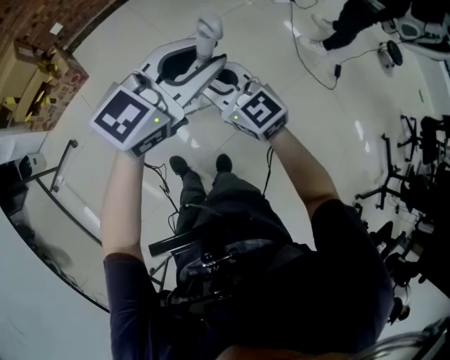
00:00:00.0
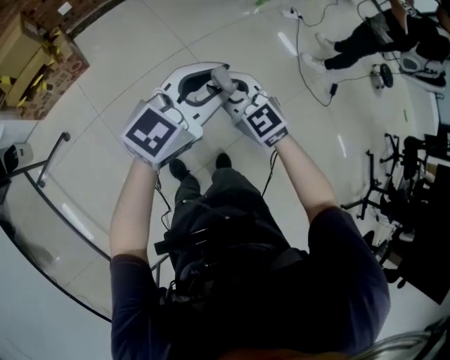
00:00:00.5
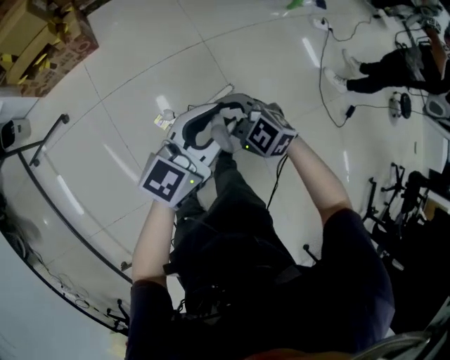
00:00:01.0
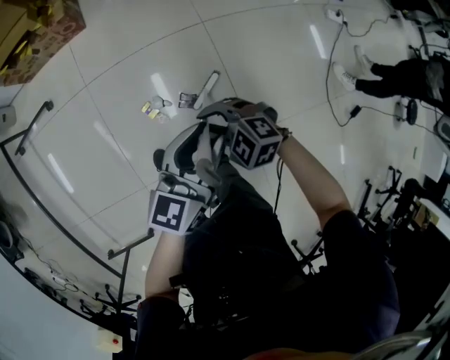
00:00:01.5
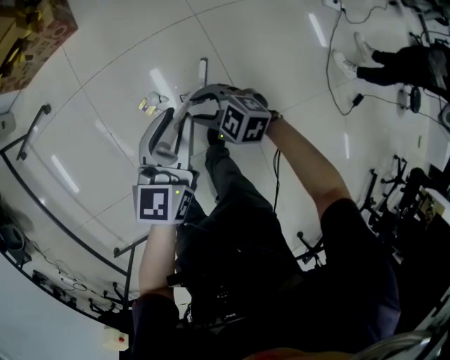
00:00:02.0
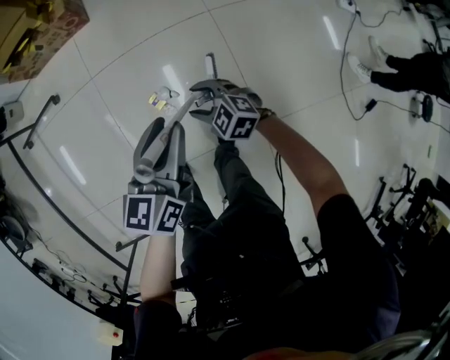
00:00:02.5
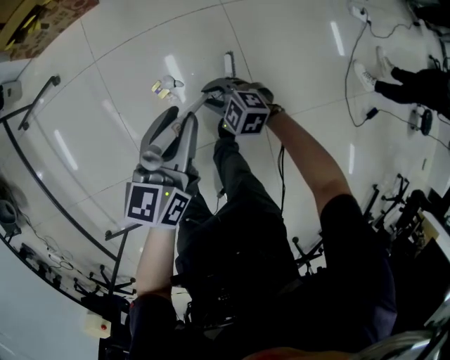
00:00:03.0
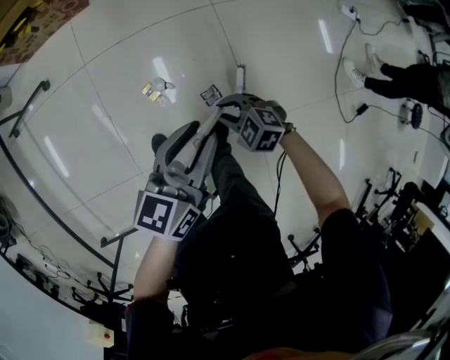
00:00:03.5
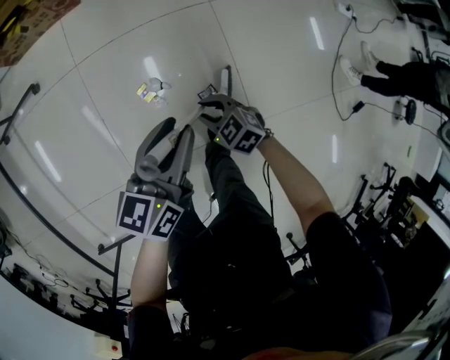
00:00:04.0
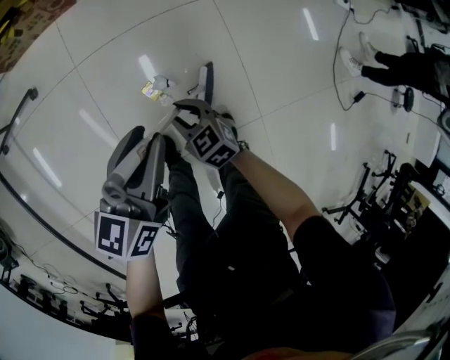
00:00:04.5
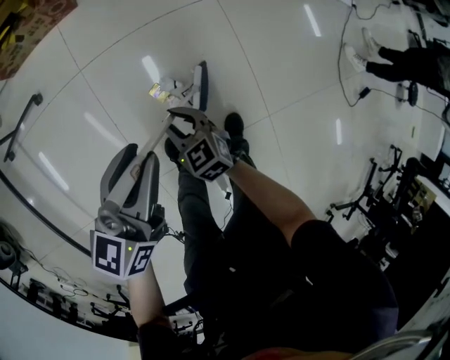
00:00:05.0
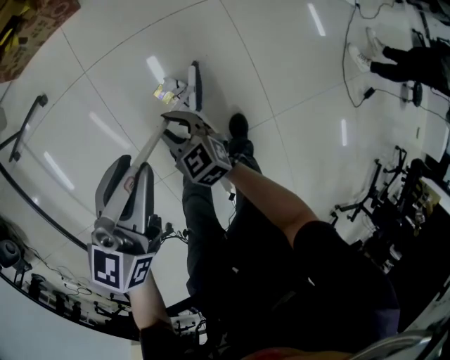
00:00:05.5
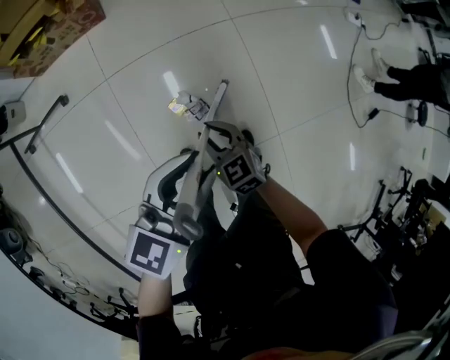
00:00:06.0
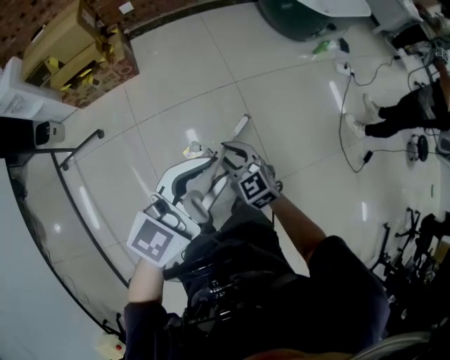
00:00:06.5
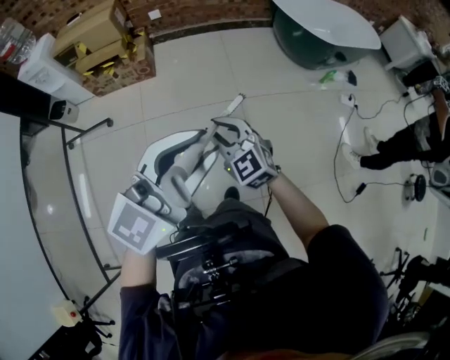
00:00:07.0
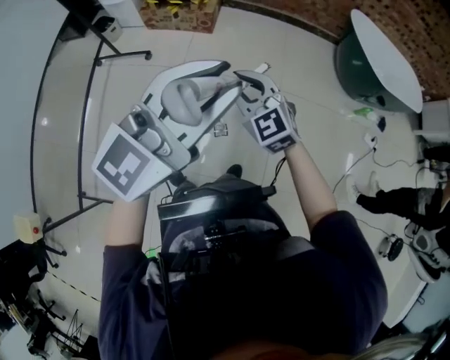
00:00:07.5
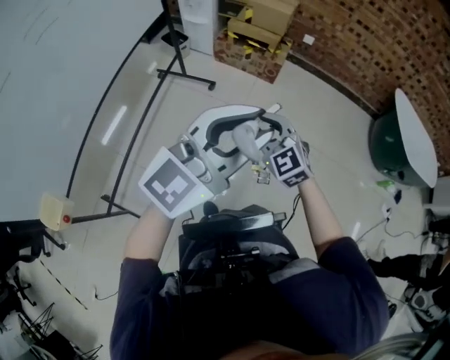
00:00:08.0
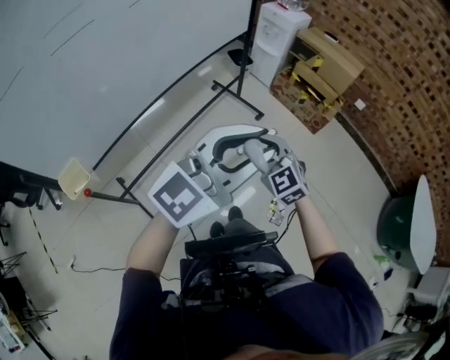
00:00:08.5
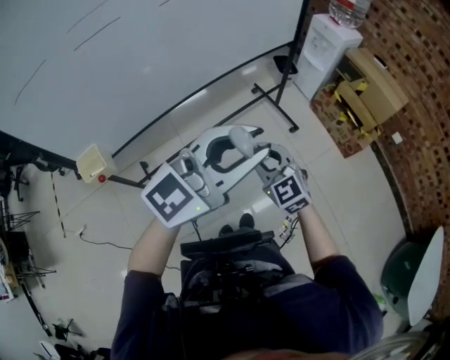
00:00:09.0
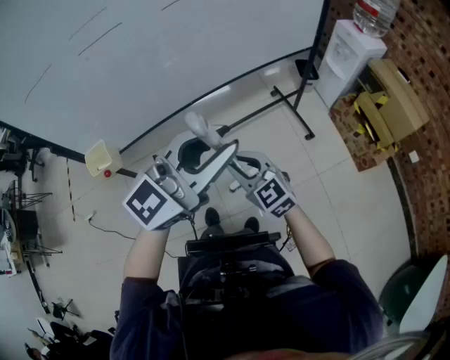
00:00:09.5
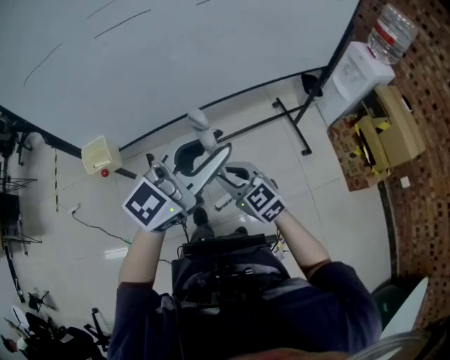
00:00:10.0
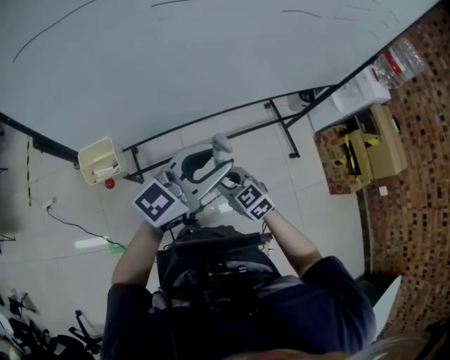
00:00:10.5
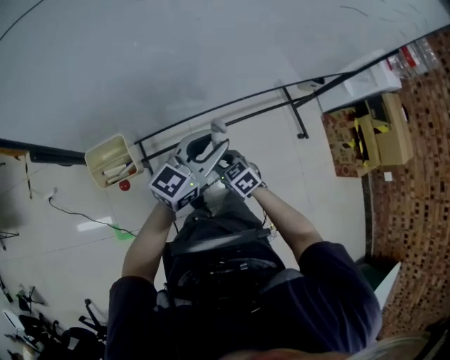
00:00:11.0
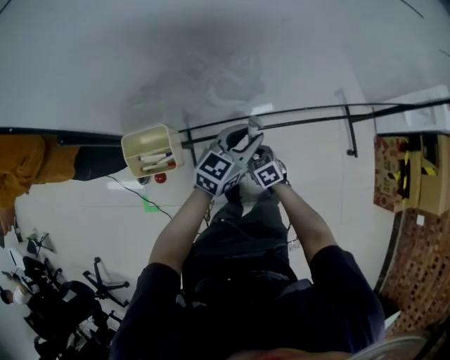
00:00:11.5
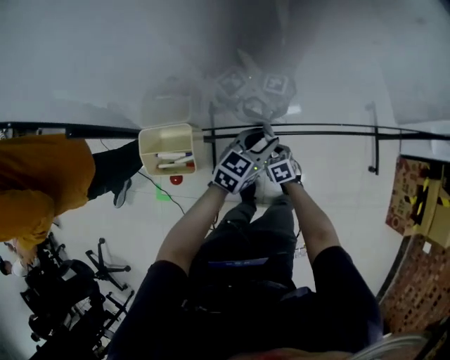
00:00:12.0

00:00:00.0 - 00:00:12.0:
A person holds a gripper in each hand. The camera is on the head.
00:00:00.0 - 00:00:02.0: Both grippers move downward, approximately 30 cm. The left gripper swivels roughly 60 degrees, while the right gripper tips its fingers downward by some 30 degrees, and opens up.
00:00:02.0 - 00:00:04.0: The right gripper shifts some 10 cm downward. The left gripper is displaced to the left and downward by roughly 10 cm.
00:00:04.0 - 00:00:06.0: The left gripper travels upward and to the left by approximately 10 cm, and turns by some 30 degrees. The right gripper moves to the left and upward, roughly 15 cm, and changes its angle by some 30 degrees.
00:00:06.0 - 00:00:08.0: The grippers both shift upward by approximately 40 cm. The right gripper rotates around the line of its fingers by approximately 50 degrees, counterclockwise from behind; the left gripper rotates about 50 degrees.
00:00:08.0 - 00:00:10.0: The left gripper changes place by some 35 cm, and changes its angle by roughly 50 degrees. Meanwhile the right gripper changes place by approximately 35 cm, and changes its angle by about 60 degrees.
00:00:10.0 - 00:00:12.0: The grippers both shift downward, to the left and forward by approximately 50 cm. The left gripper tips its fingers downward by some 30 degrees. The right gripper tips its fingers downward by about 40 degrees.

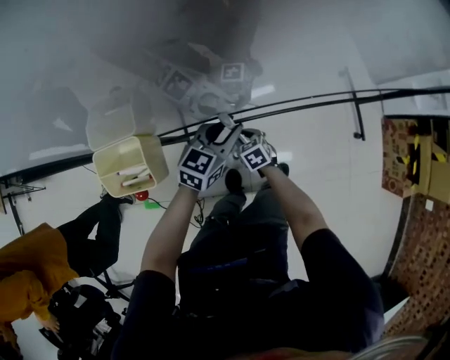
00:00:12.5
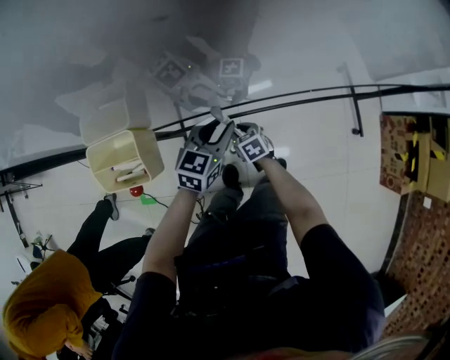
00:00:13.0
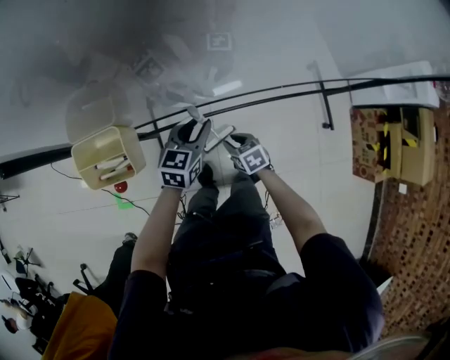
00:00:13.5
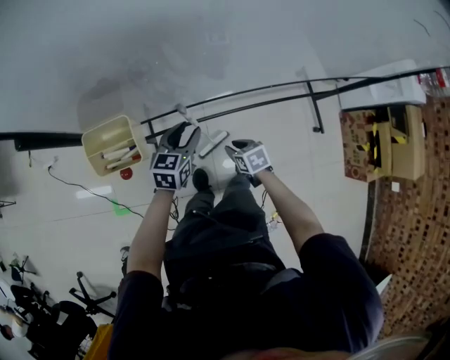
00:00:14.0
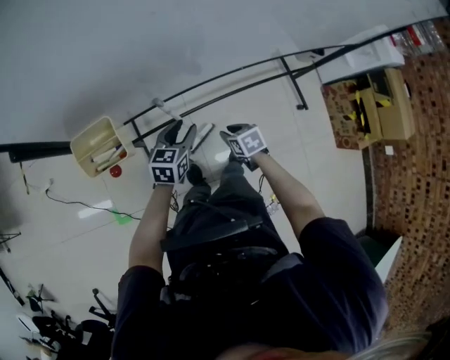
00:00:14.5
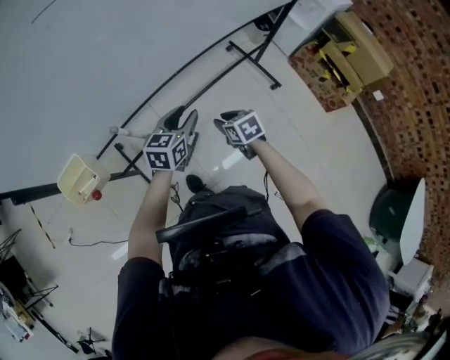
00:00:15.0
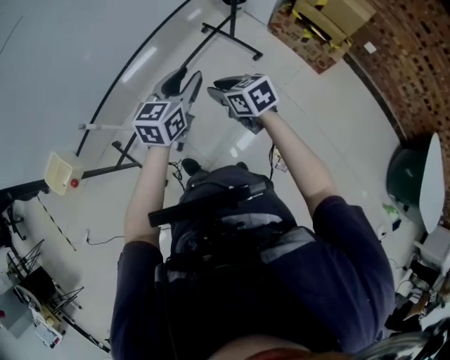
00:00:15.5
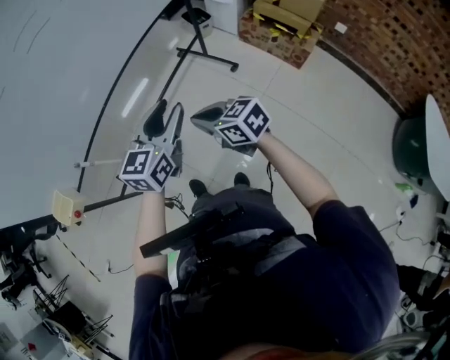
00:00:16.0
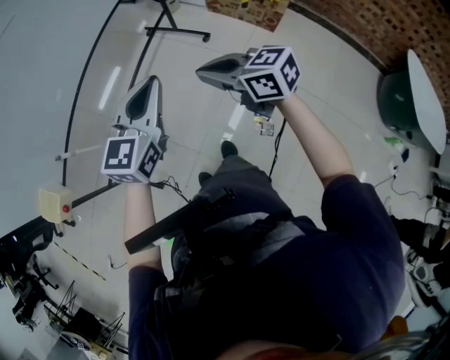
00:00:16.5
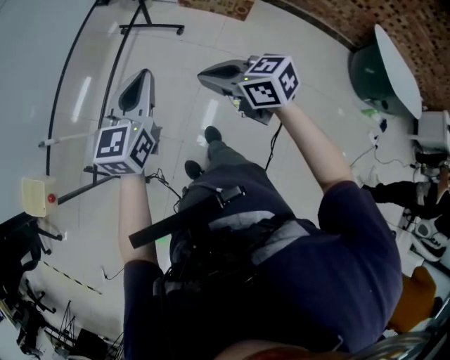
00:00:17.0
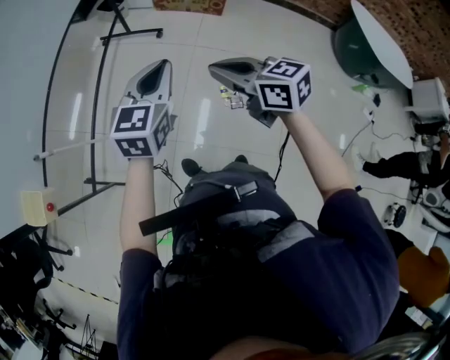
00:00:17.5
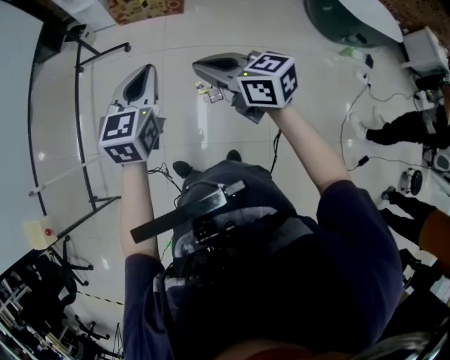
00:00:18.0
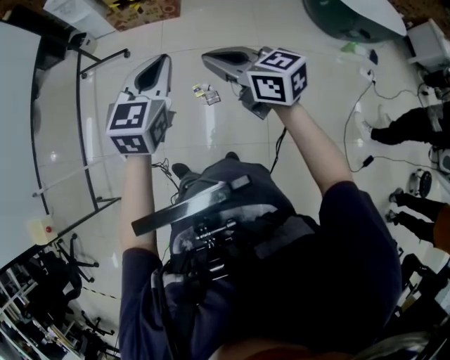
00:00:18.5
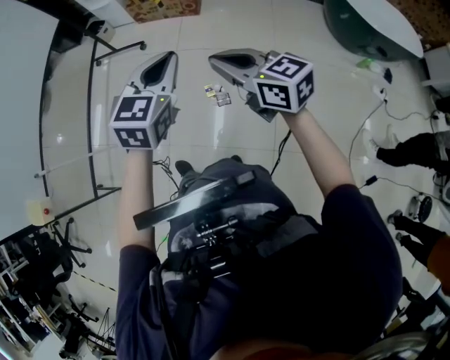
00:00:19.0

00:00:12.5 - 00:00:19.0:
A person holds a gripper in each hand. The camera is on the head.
00:00:12.5 - 00:00:14.5: The left gripper shifts by about 5 cm. The right gripper moves upward, to the right and backward, about 15 cm.
00:00:14.5 - 00:00:17.0: The left gripper changes place by approximately 50 cm, rotates about 50 degrees, and closes up. Meanwhile the right gripper changes place by approximately 50 cm, angles its fingers upward, by roughly 30 degrees, and closes up.
00:00:17.0 - 00:00:19.0: The left gripper changes place by approximately 40 cm, and changes its angle by some 30 degrees. Meanwhile the right gripper shifts by roughly 40 cm, and swivels roughly 30 degrees.

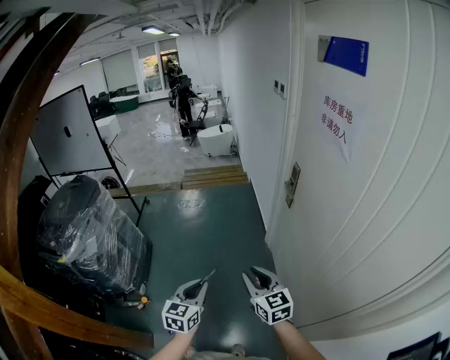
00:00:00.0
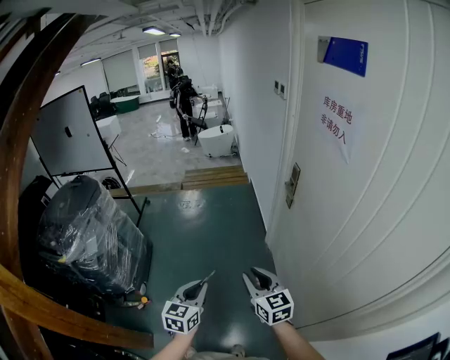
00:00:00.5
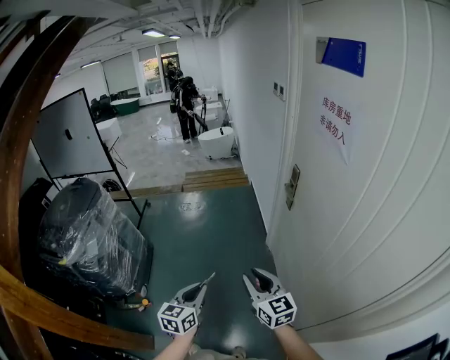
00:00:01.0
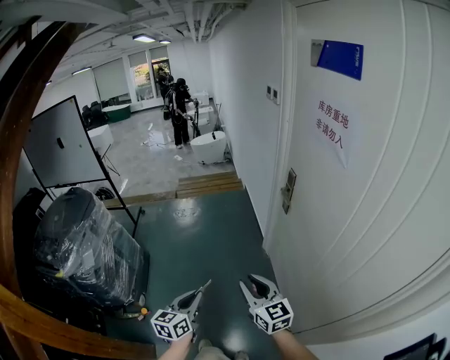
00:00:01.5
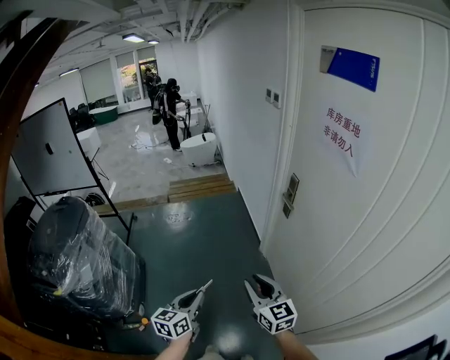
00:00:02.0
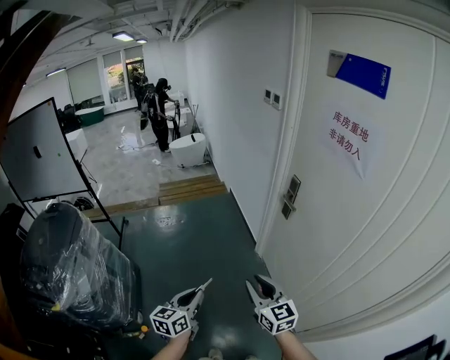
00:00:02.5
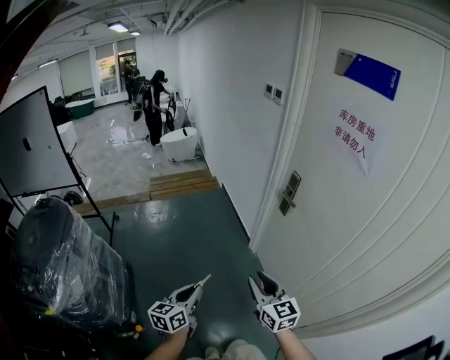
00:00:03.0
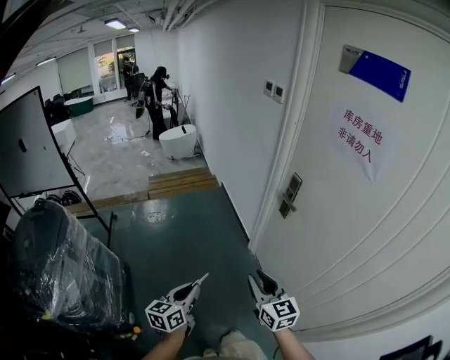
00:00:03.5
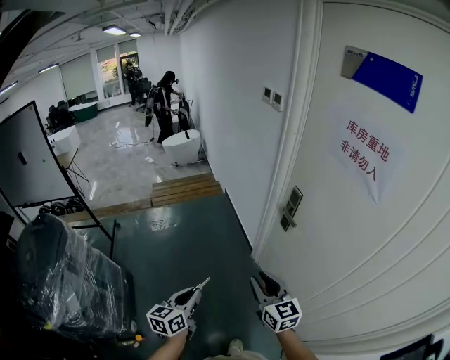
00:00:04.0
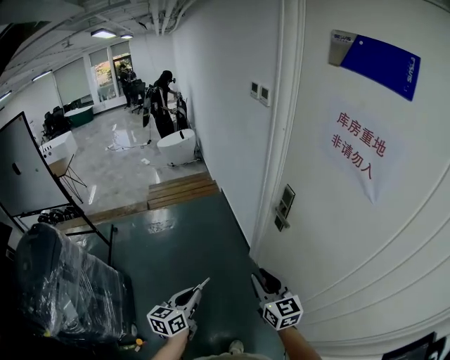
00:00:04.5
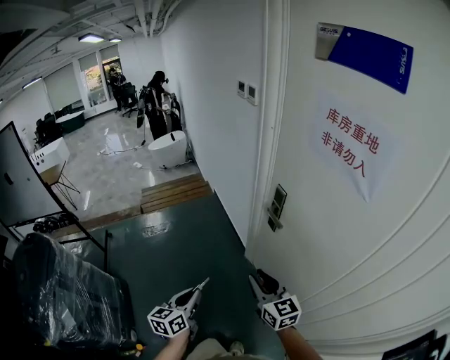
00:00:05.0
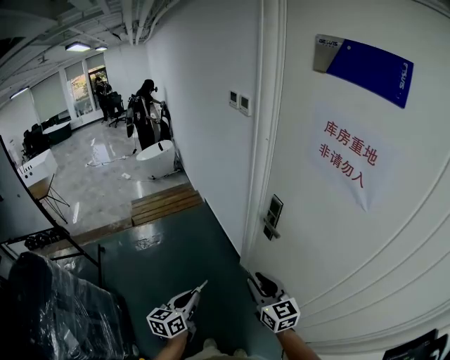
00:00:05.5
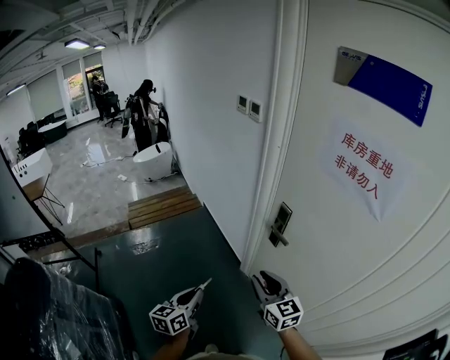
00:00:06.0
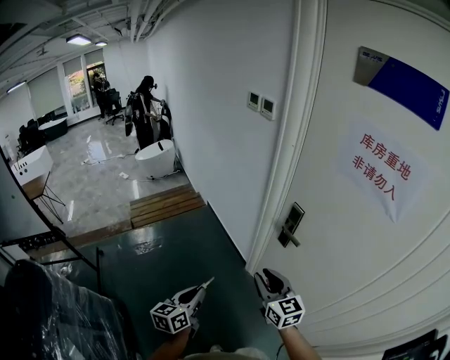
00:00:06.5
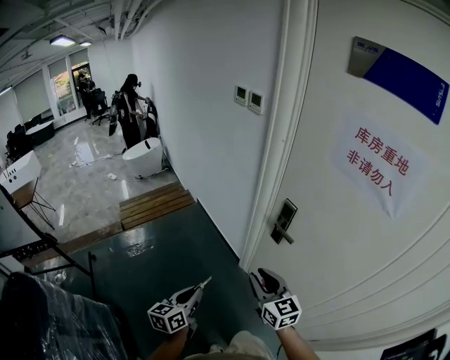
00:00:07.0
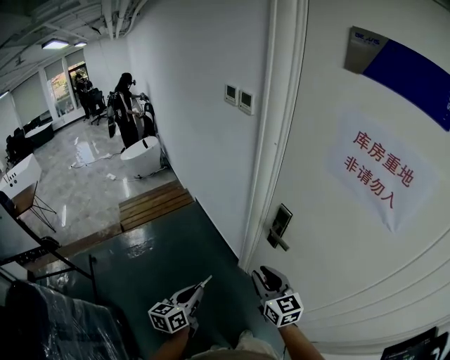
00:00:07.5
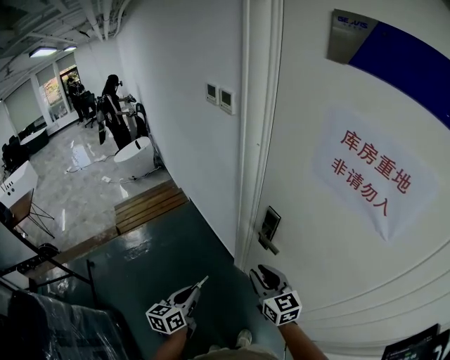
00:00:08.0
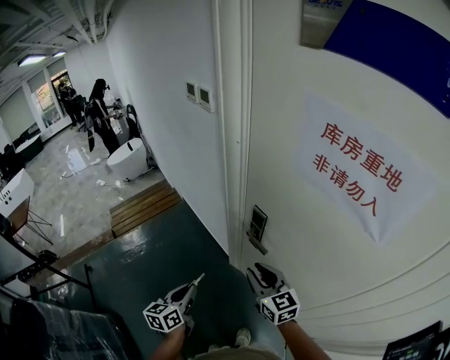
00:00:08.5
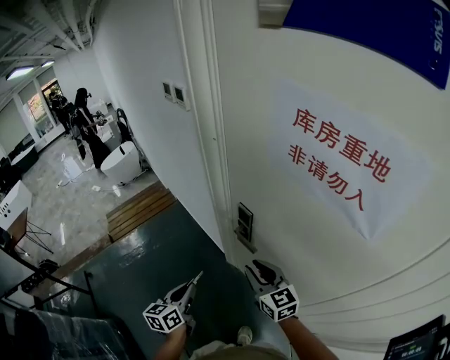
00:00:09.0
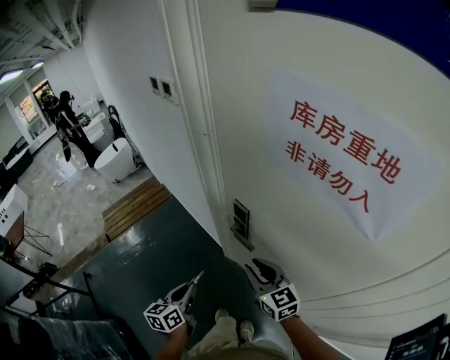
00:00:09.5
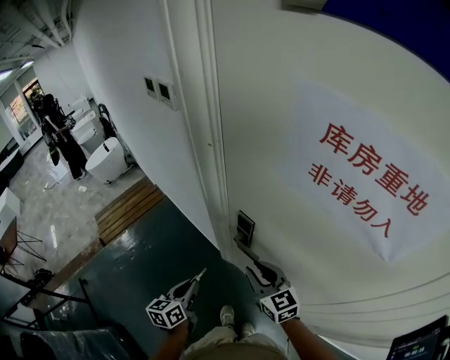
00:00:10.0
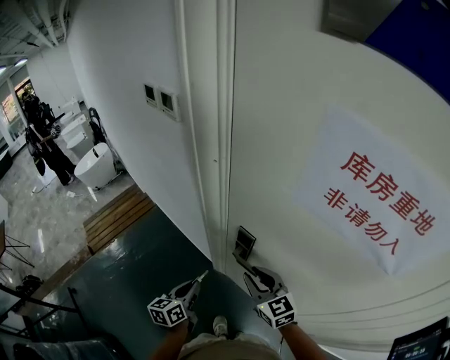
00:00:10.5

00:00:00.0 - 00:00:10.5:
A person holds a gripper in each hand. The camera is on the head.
00:00:00.0 - 00:00:02.0: The left gripper shifts roughly 10 cm to the left and forward; the right gripper shifts approximately 5 cm forward.
00:00:02.0 - 00:00:04.0: Both grippers move forward, about 15 cm.
00:00:04.0 - 00:00:06.5: Both grippers move forward, about 15 cm.
00:00:06.5 - 00:00:08.5: The right gripper is displaced to the right and forward by approximately 15 cm, while the left gripper is displaced forward and to the right by approximately 15 cm.
00:00:08.5 - 00:00:10.5: The left gripper moves forward, approximately 15 cm, while the right gripper goes roughly 10 cm forward.
